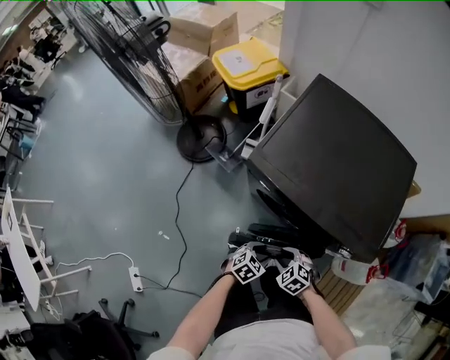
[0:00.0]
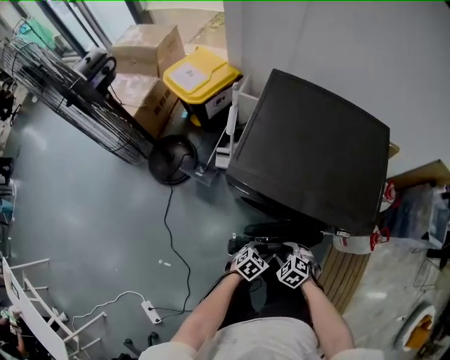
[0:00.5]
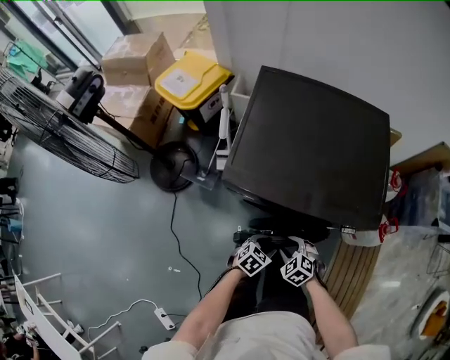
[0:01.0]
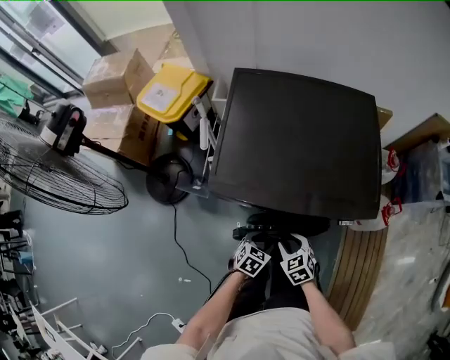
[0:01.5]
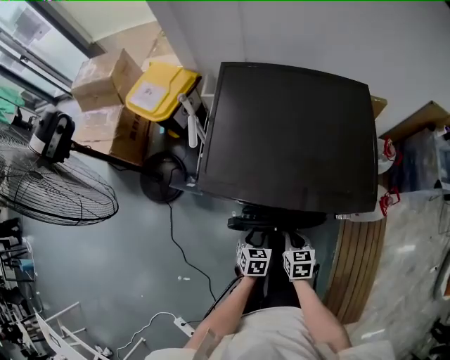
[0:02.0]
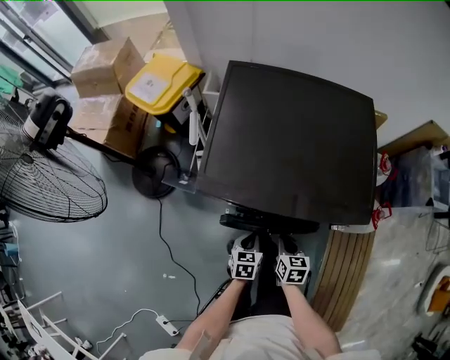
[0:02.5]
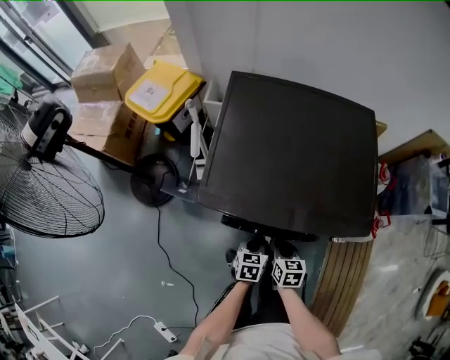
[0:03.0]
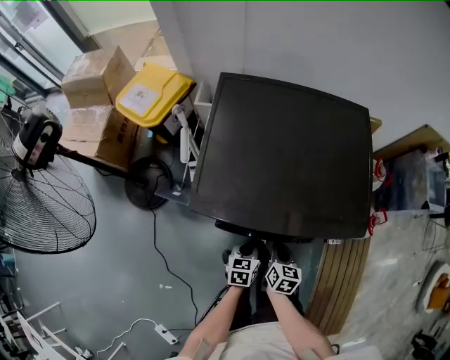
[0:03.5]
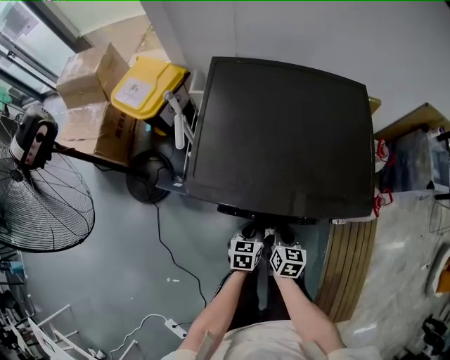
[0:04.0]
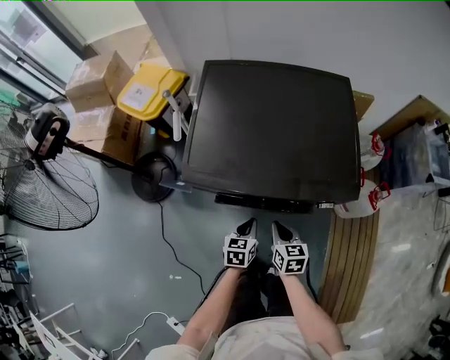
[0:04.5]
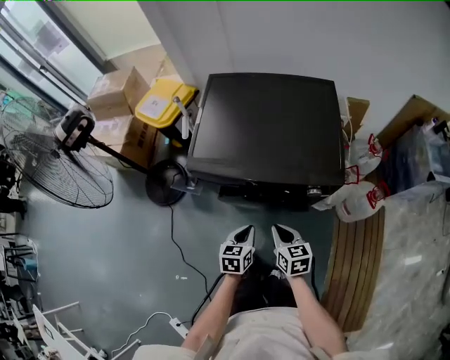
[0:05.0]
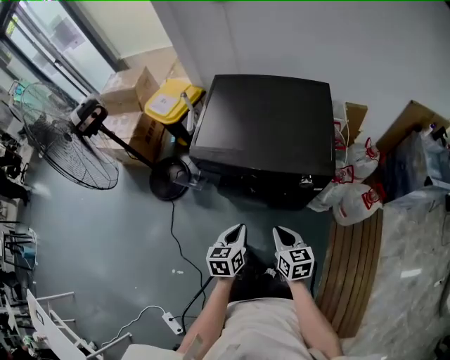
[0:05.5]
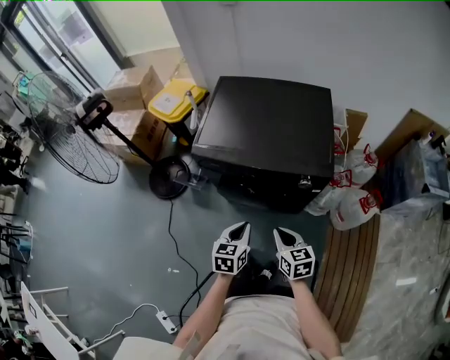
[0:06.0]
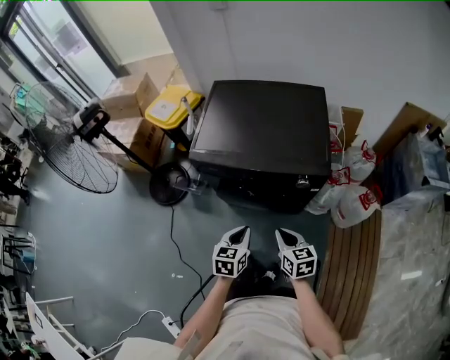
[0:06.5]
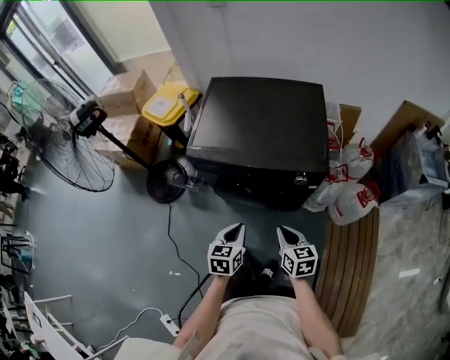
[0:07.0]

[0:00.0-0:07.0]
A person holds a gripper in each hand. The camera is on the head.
0:00.0 to 0:02.0: The left gripper shifts by roughly 10 cm; the right gripper changes place by about 10 cm, twists some 70 degrees clockwise, seen from behind, and closes up.
0:02.0 to 0:03.5: The right gripper rotates approximately 20 degrees; the left gripper travels forward by some 5 cm, and closes up.
0:03.5 to 0:05.0: Both grippers move upward and backward, roughly 15 cm. The right gripper changes its angle by some 20 degrees.
0:05.0 to 0:07.0: The left gripper goes some 10 cm upward and backward, while the right gripper shifts about 10 cm backward and to the right.

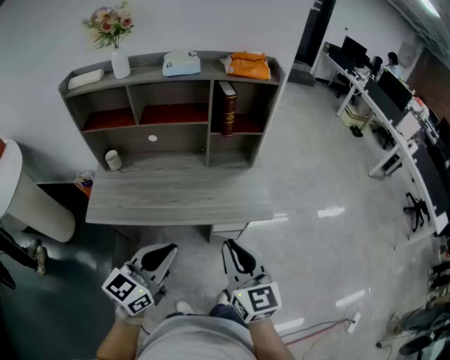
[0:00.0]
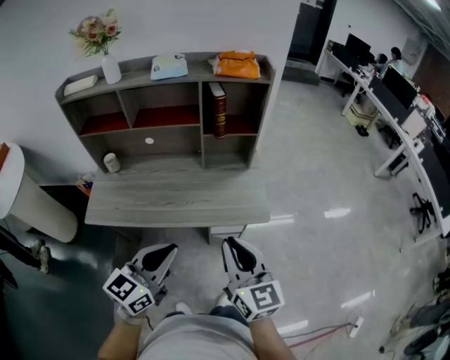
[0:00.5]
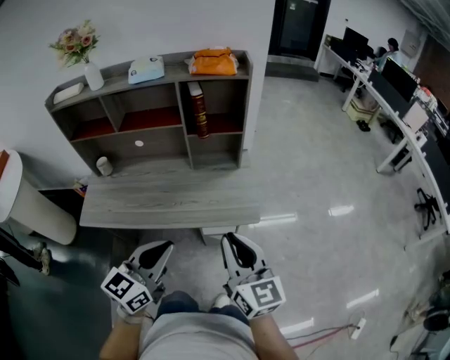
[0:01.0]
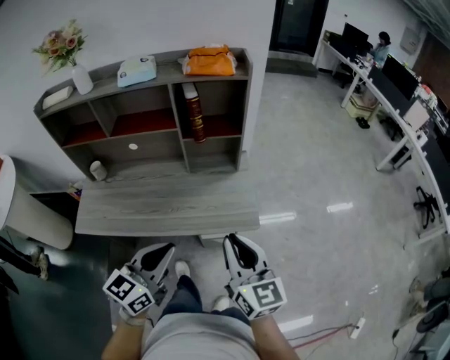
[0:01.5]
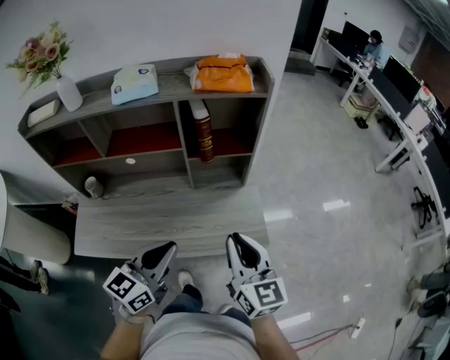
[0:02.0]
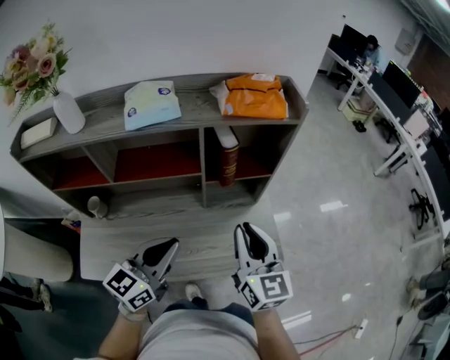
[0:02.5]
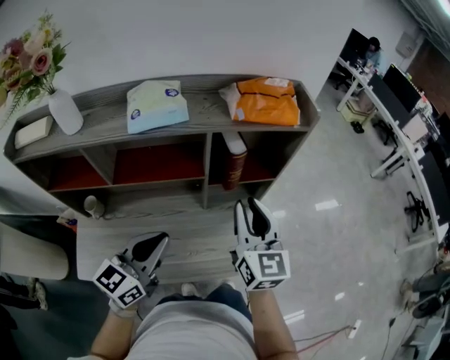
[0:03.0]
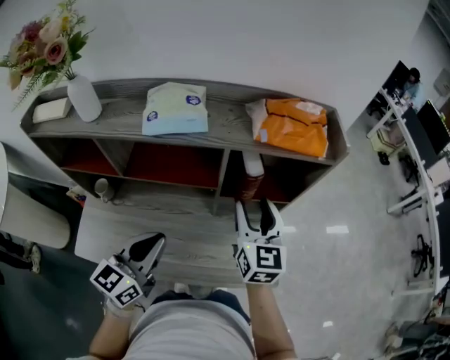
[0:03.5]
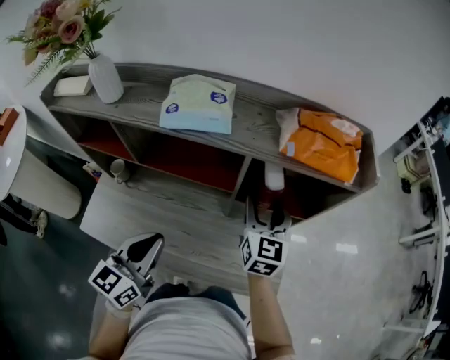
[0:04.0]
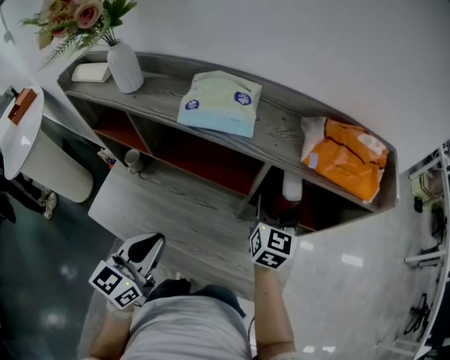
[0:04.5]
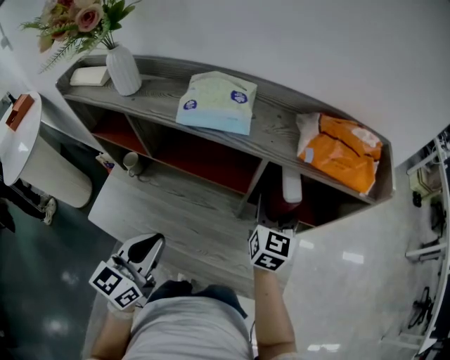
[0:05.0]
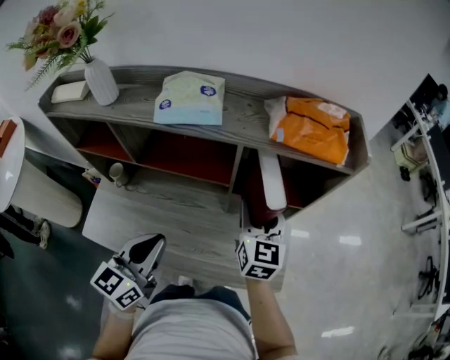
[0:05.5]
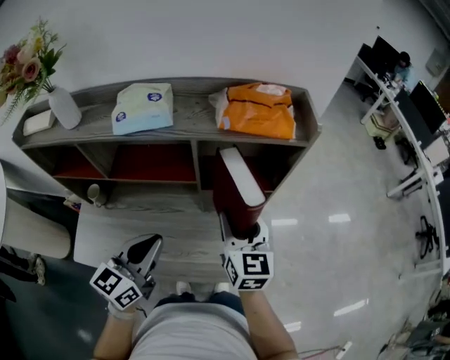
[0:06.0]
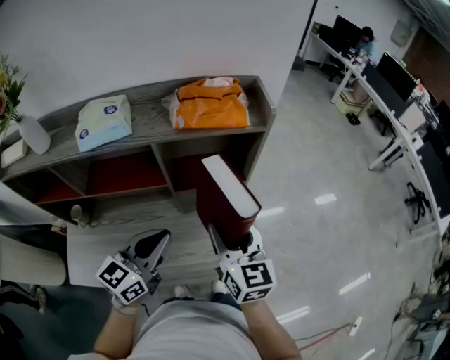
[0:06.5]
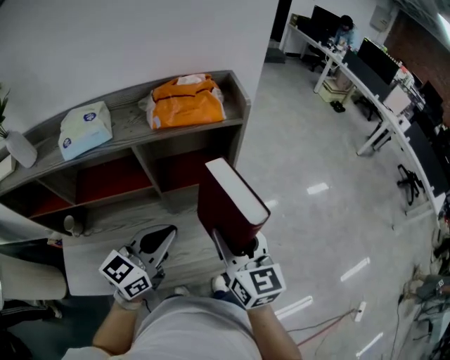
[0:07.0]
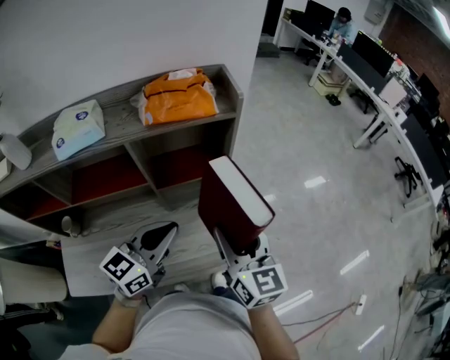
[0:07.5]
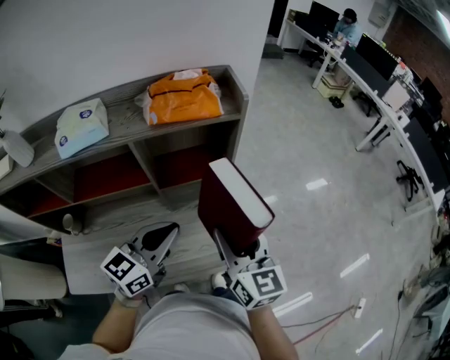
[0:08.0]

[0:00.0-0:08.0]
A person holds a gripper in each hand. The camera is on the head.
0:00.0 to 0:02.0: Both grippers move forward, roughly 20 cm.
0:02.0 to 0:04.0: The right gripper heads forward and to the left, covering some 35 cm, and opens its fingers. The left gripper is displaced to the left and forward by some 20 cm, and swivels approximately 20 degrees.
0:04.0 to 0:06.0: The right gripper heads backward, covering roughly 10 cm. Meanwhile the left gripper goes roughly 5 cm to the right.
0:06.0 to 0:08.0: The right gripper shifts about 10 cm to the right and backward, while the left gripper is displaced to the right and forward by approximately 15 cm, and swivels approximately 20 degrees.

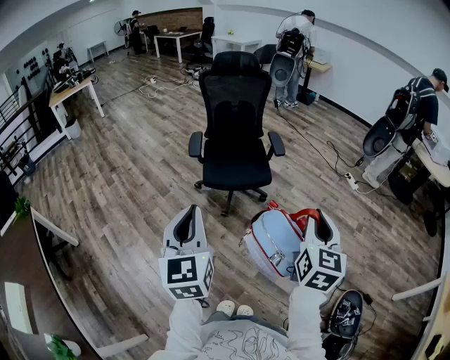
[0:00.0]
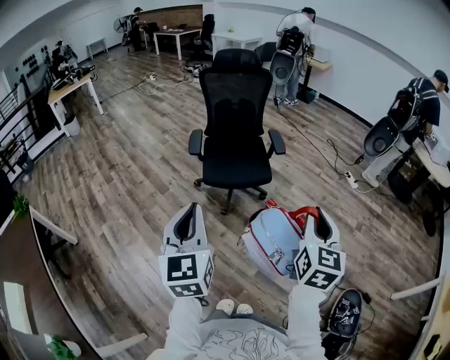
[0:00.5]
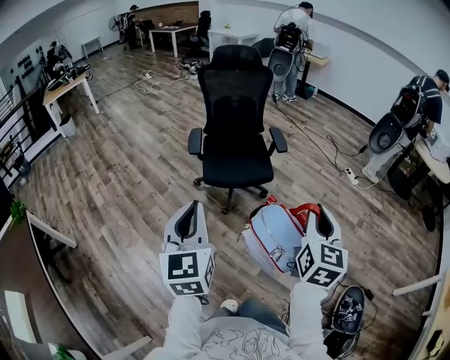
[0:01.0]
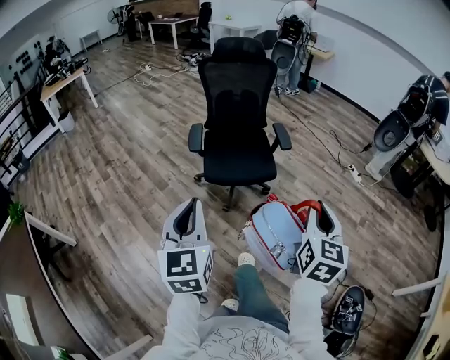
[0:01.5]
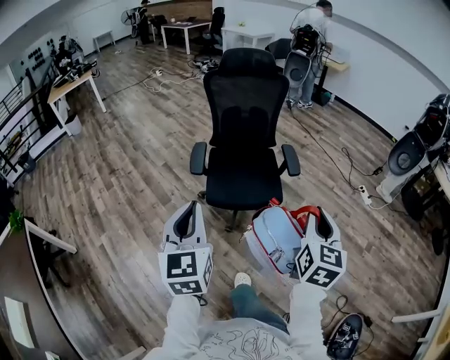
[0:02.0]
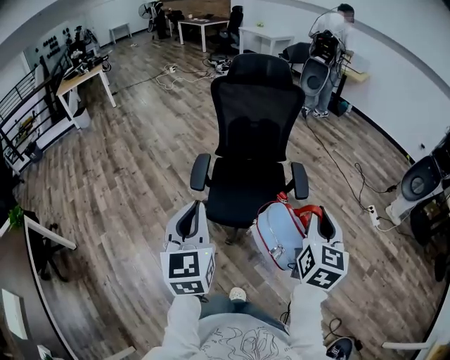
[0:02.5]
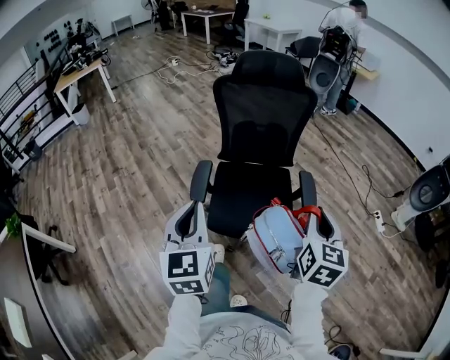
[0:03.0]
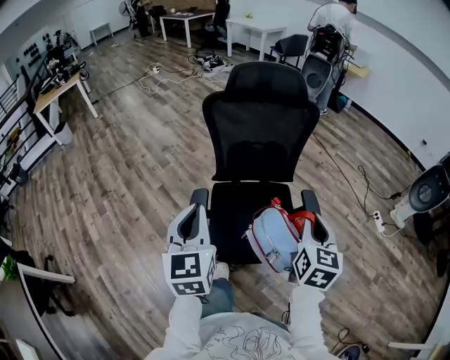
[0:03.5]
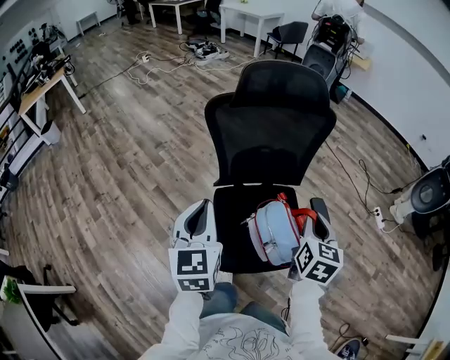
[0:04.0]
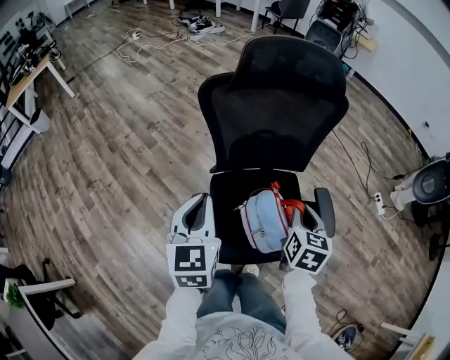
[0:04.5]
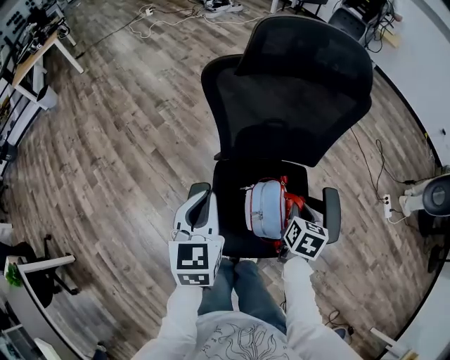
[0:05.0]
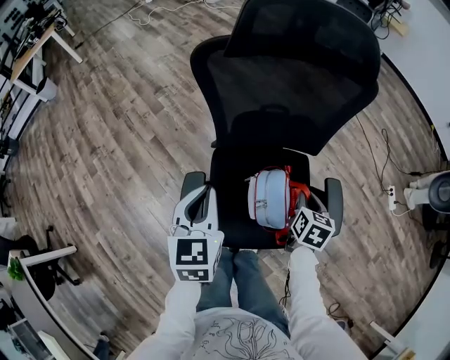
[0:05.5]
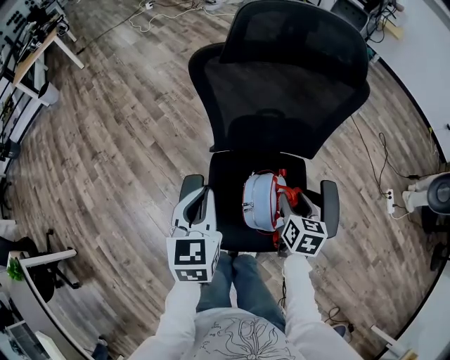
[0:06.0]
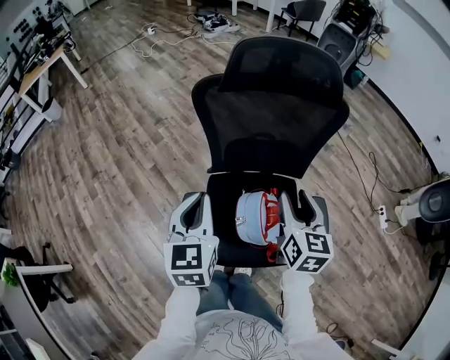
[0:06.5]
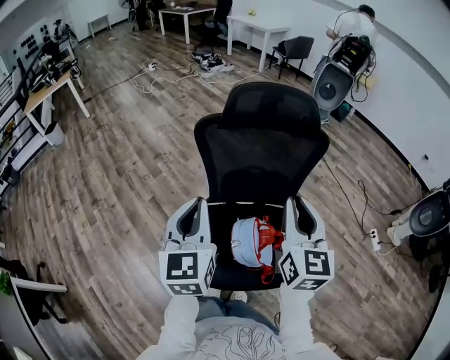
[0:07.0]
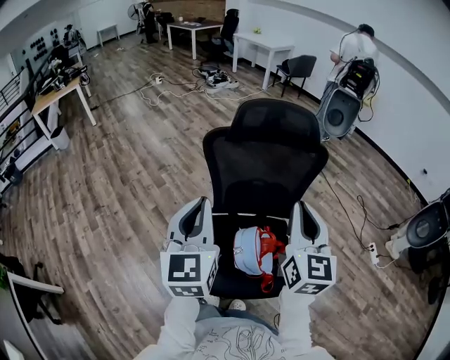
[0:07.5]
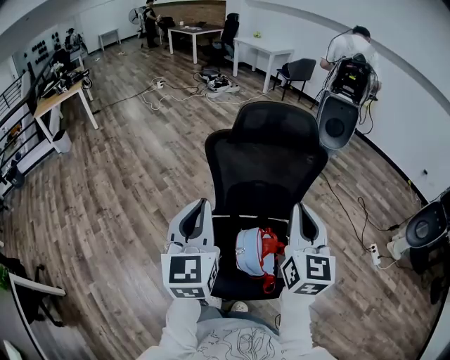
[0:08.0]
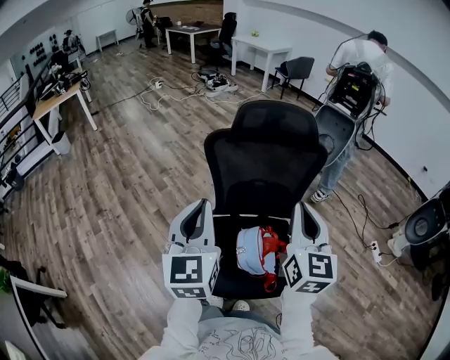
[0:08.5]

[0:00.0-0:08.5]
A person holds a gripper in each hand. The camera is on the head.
0:00.0 to 0:02.0: The two grippers go some 25 cm forward.
0:02.0 to 0:04.0: The two grippers travel together, forward, some 50 cm.
0:04.0 to 0:06.5: The left gripper travels forward and downward by some 10 cm, while the right gripper travels forward by approximately 10 cm, travels downward and back again, approximately 20 cm each way, and opens its fingers.
0:06.5 to 0:08.5: Both grippers move upward, roughly 15 cm. The right gripper swivels approximately 20 degrees, and closes up.

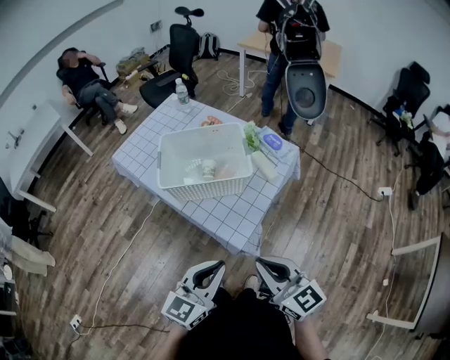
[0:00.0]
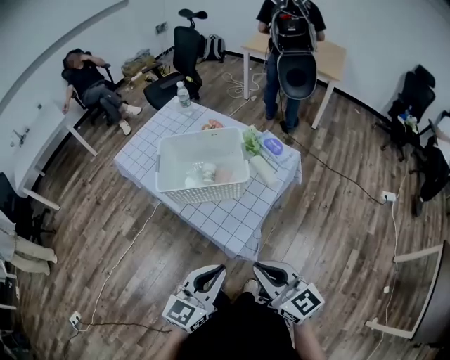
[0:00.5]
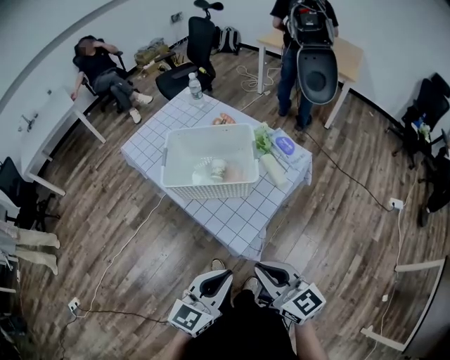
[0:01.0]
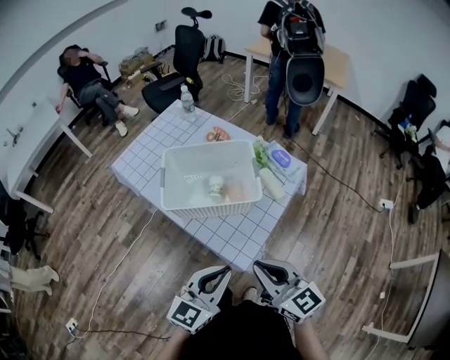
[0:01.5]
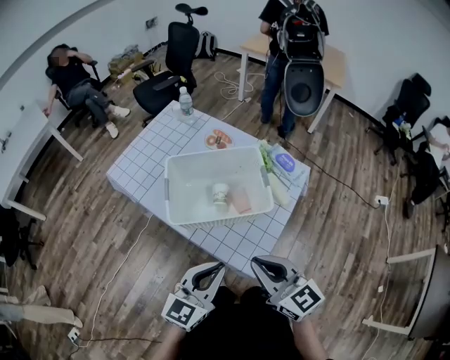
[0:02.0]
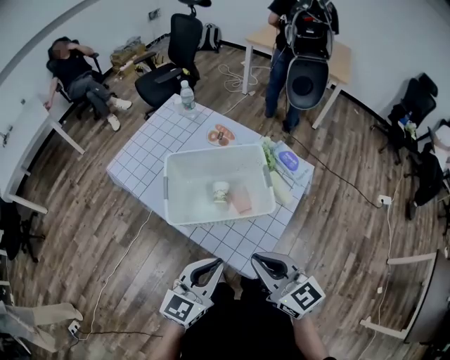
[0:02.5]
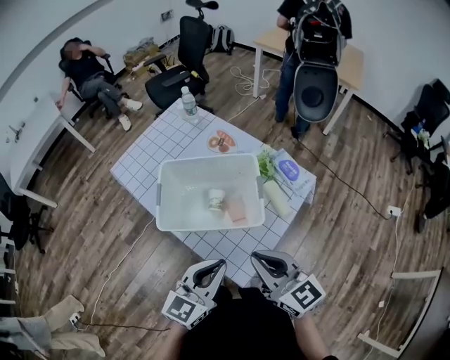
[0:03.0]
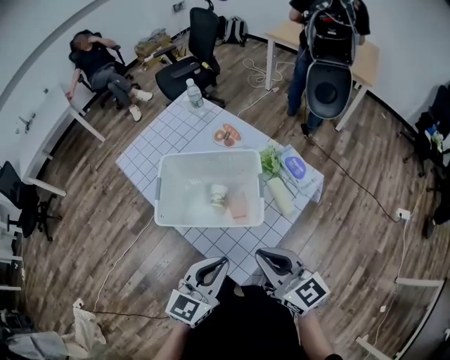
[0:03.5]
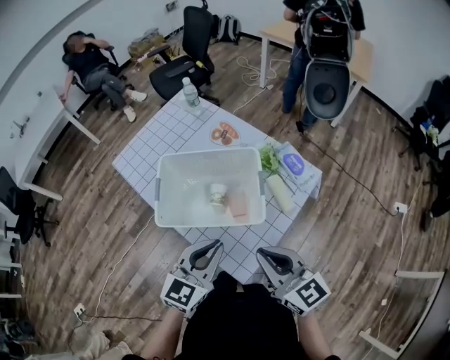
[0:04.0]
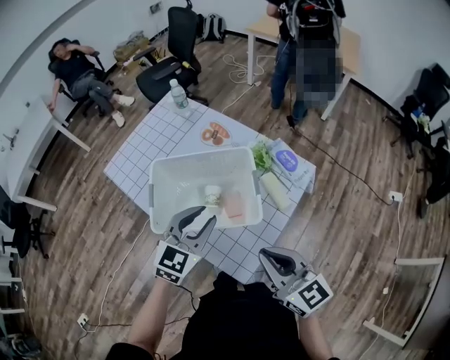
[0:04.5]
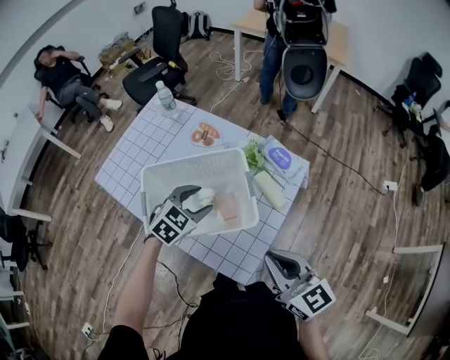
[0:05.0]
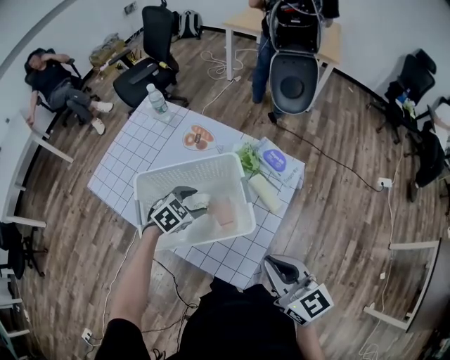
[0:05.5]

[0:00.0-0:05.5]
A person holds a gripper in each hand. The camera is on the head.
0:00.0 to 0:02.0: Both grippers move forward and to the left, roughly 15 cm.
0:02.0 to 0:03.5: The two grippers go approximately 10 cm to the right and forward.
0:03.5 to 0:05.5: The left gripper shifts by roughly 30 cm, tilts its fingers some 40 degrees downward, and opens its fingers.
